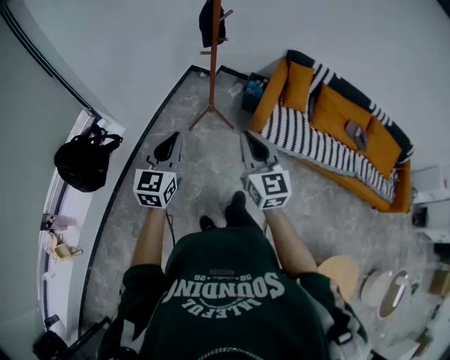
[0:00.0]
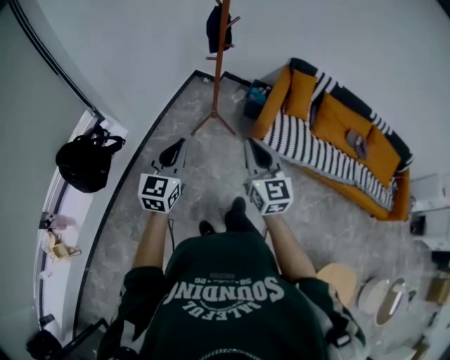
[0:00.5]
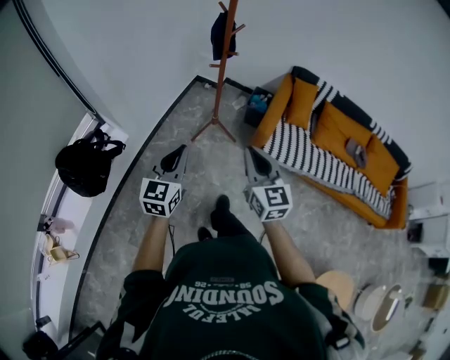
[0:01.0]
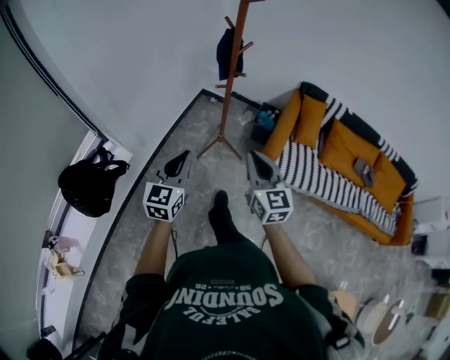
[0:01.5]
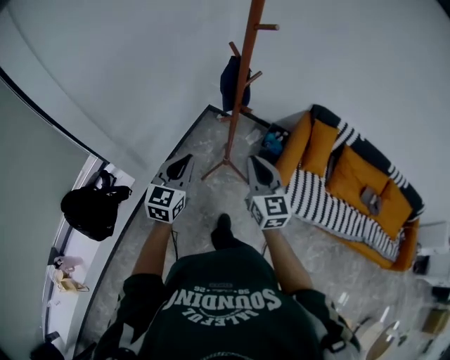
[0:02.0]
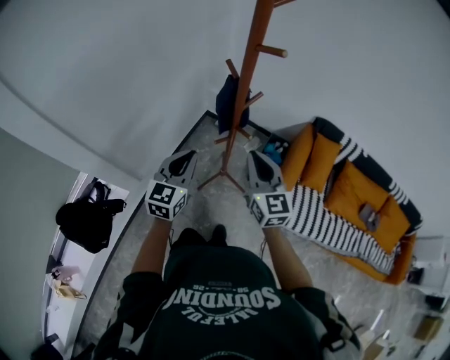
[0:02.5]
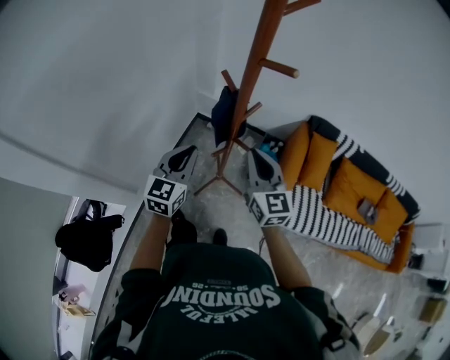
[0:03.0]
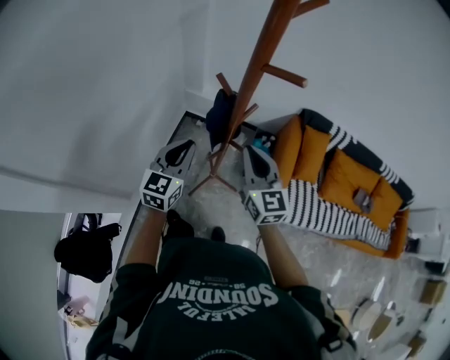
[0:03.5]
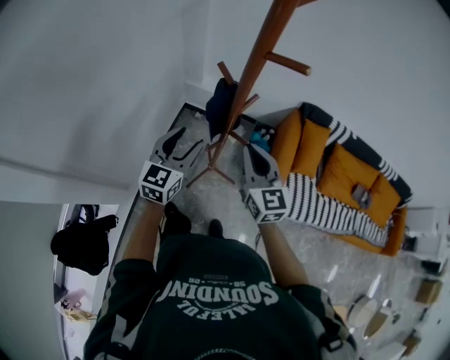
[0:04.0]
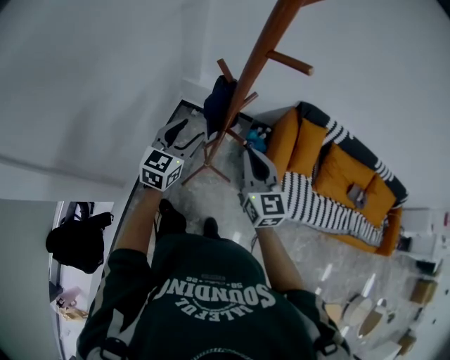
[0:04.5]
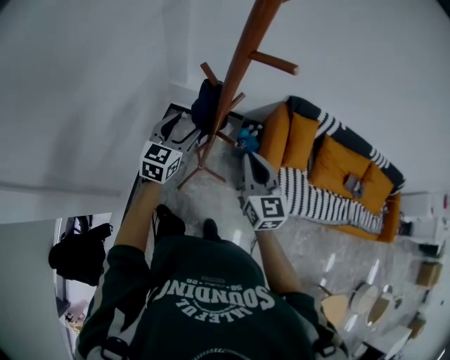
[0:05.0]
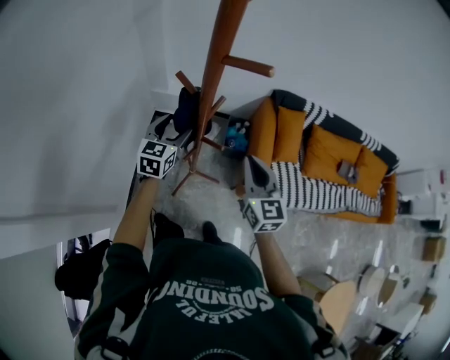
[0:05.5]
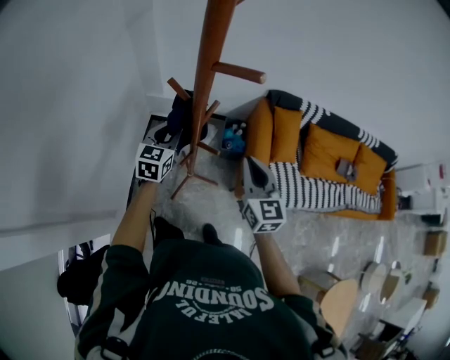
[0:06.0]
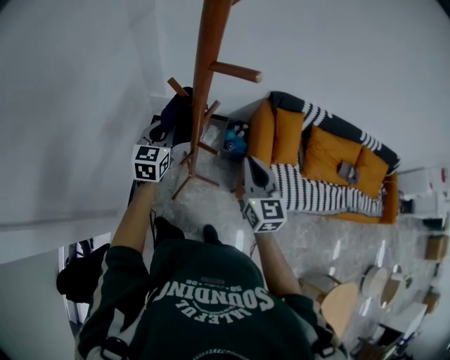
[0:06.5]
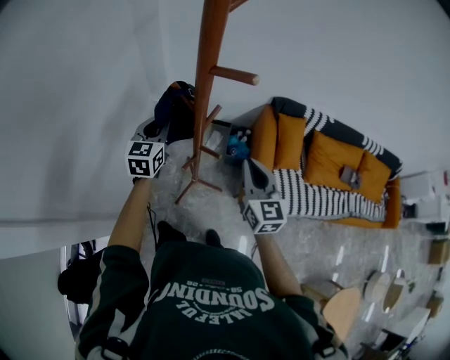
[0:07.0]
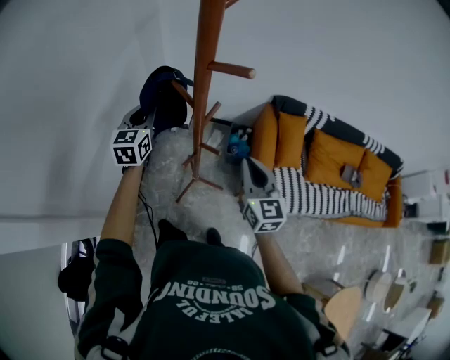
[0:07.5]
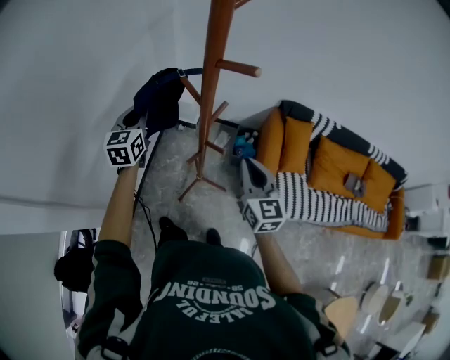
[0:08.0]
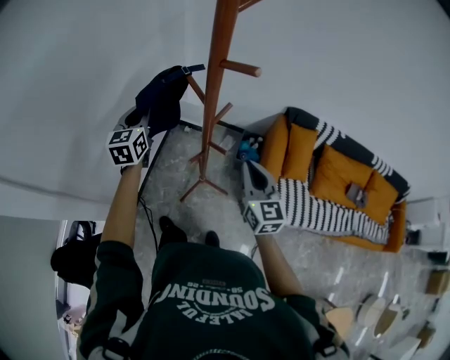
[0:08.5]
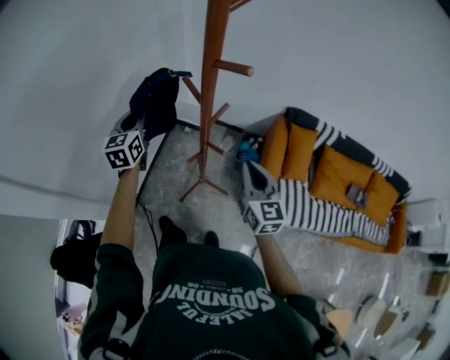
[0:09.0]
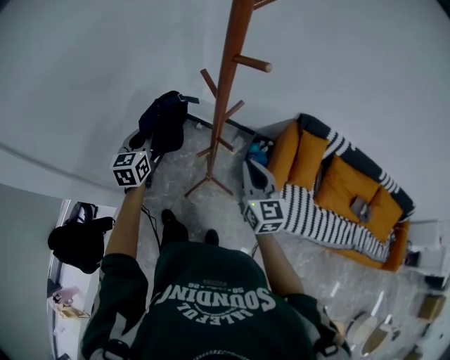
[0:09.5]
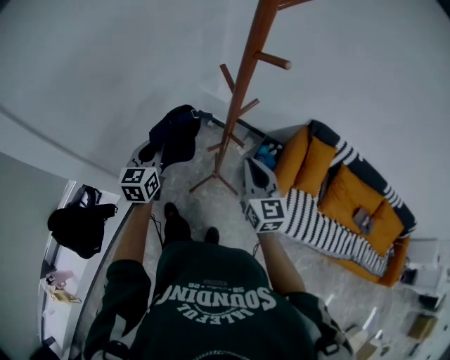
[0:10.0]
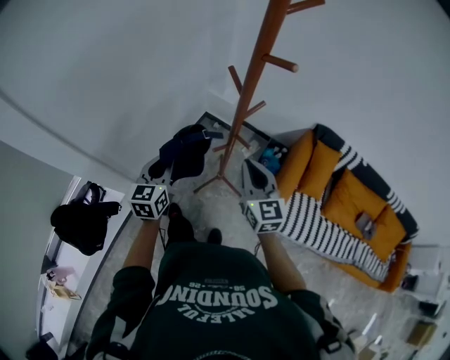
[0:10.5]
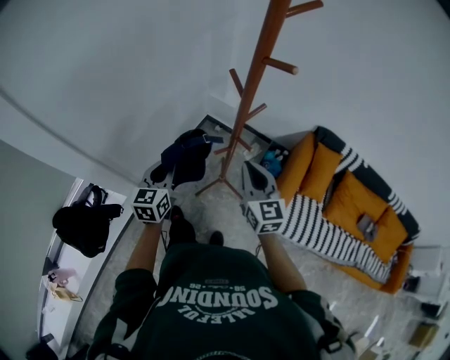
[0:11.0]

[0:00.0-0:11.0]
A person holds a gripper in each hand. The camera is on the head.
0:00.0 to 0:02.0: Both grippers move forward, some 30 cm.
0:02.0 to 0:03.5: Both grippers move forward, roughly 25 cm.
0:03.5 to 0:05.5: The right gripper travels to the right by approximately 10 cm; the left gripper goes approximately 10 cm forward and downward, and opens.
0:05.5 to 0:07.5: The left gripper travels to the left and upward by roughly 10 cm, and closes up.
0:07.5 to 0:09.0: The left gripper goes some 5 cm to the left.
0:09.0 to 0:11.0: The left gripper travels backward by approximately 20 cm. Meanwhile the right gripper goes roughly 10 cm to the left.

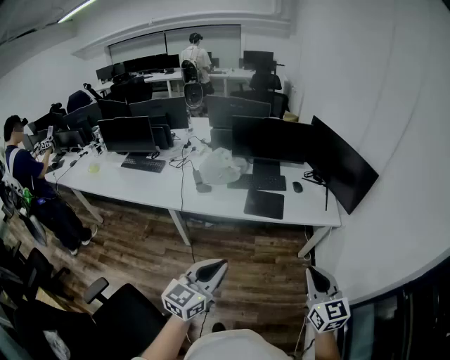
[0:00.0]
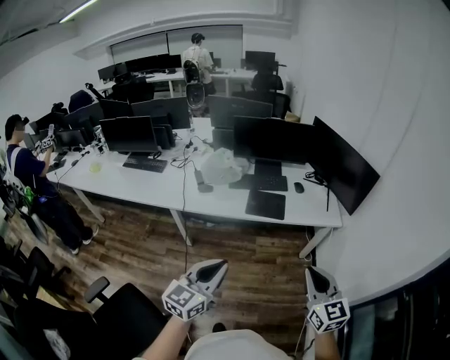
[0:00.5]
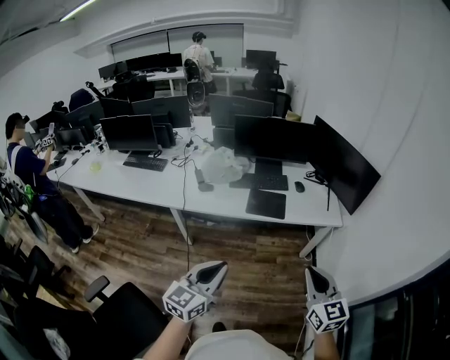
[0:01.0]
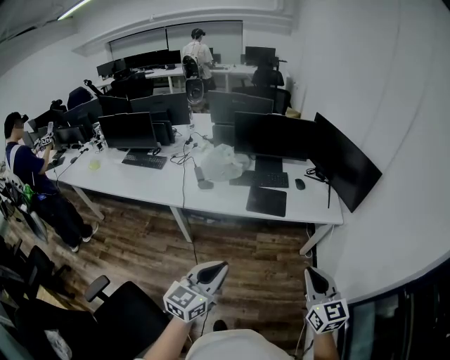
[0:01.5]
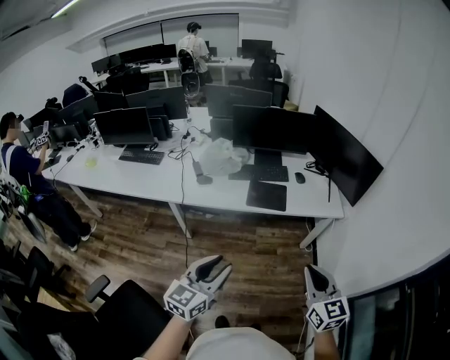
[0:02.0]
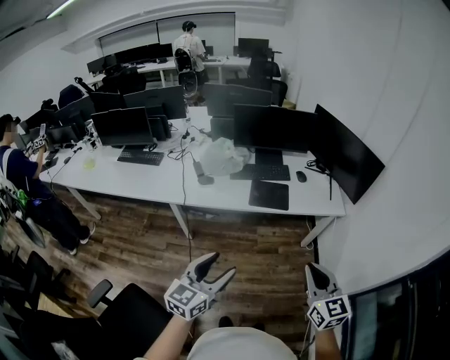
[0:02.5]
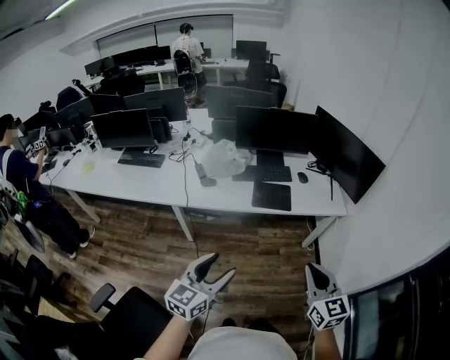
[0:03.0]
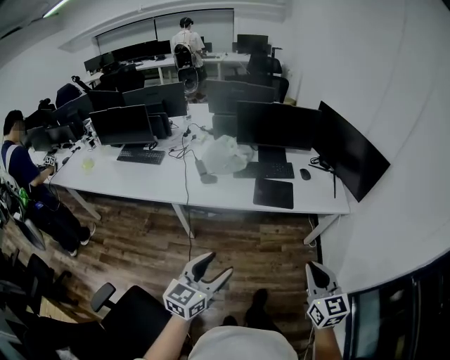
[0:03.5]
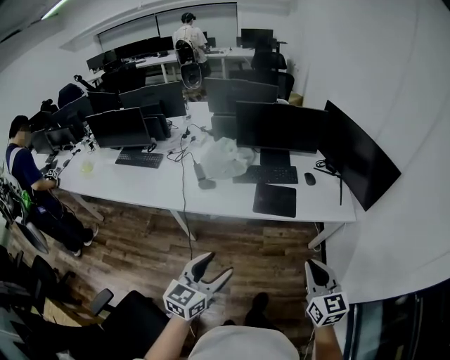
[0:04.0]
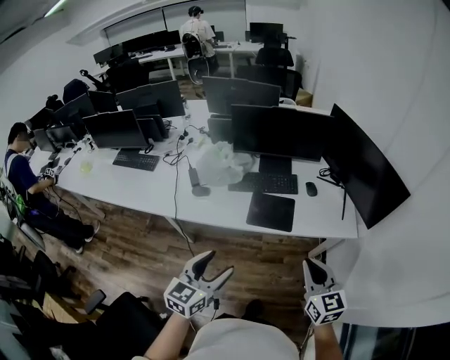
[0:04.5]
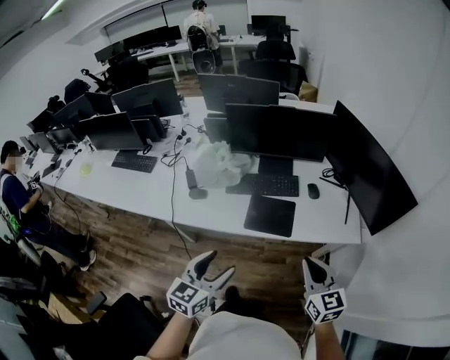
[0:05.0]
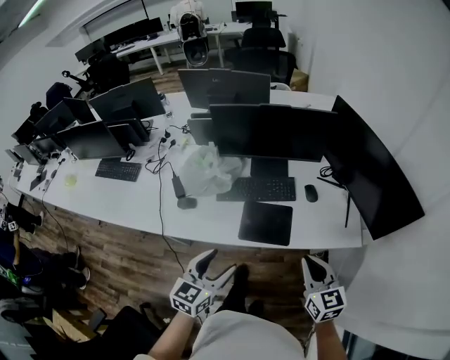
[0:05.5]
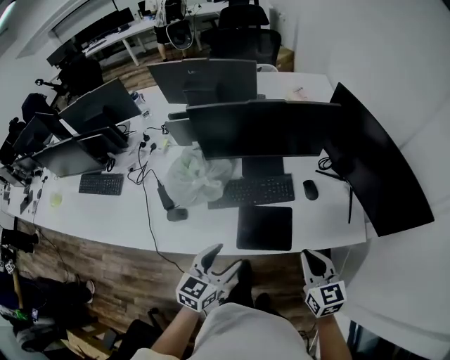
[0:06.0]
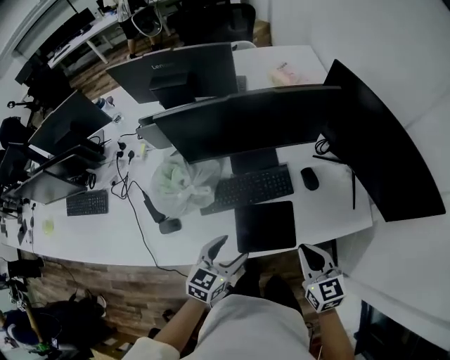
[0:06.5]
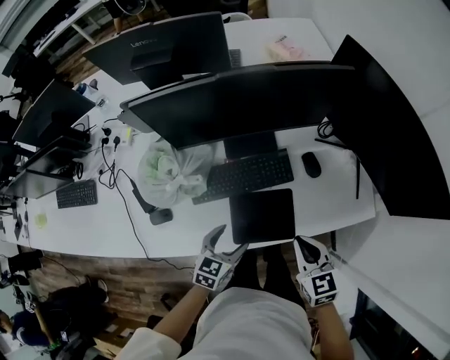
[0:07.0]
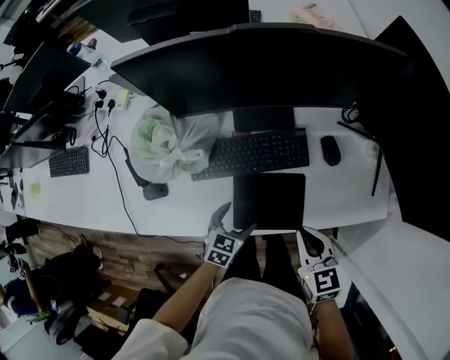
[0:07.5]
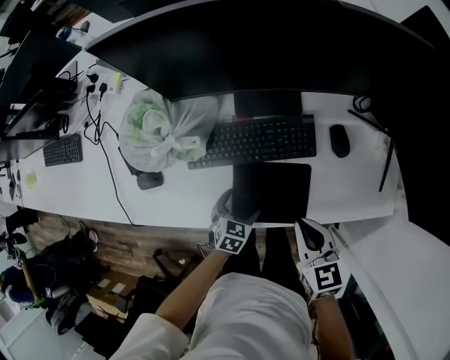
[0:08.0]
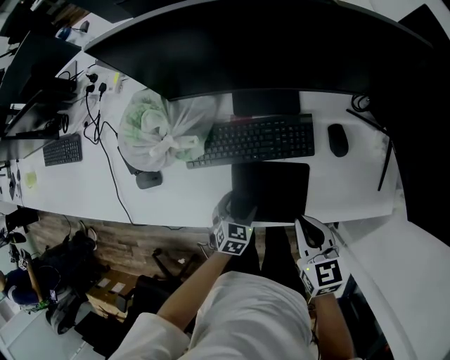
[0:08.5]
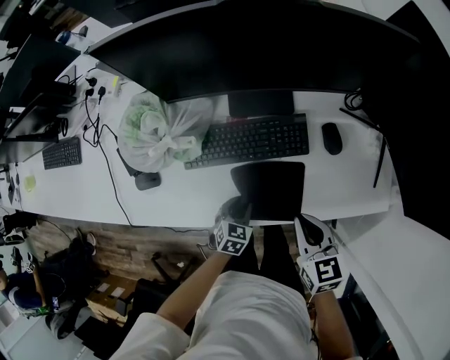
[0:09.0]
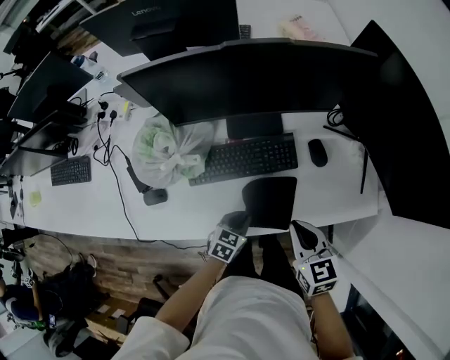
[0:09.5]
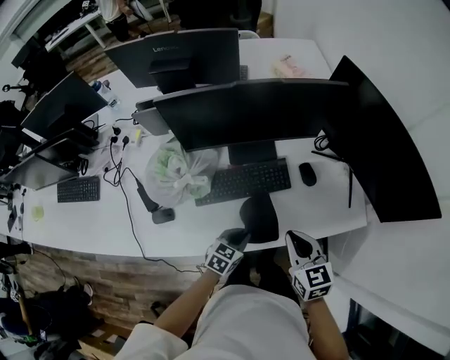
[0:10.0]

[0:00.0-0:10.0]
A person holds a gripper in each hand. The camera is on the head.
0:00.0 to 0:02.0: The grippers stay close to where they were, moving slightly.
0:02.0 to 0:04.0: The left gripper travels forward and to the left by some 10 cm; the right gripper goes roughly 10 cm forward.
0:04.0 to 0:06.0: Both grippers move forward, some 40 cm.
0:06.0 to 0:08.0: The left gripper goes roughly 35 cm downward, and angles its fingers downward, by some 30 degrees, while the right gripper shifts approximately 20 cm downward and forward.
0:08.0 to 0:10.0: The grippers both shift upward by about 10 cm. The left gripper changes its angle by some 20 degrees, and closes up.

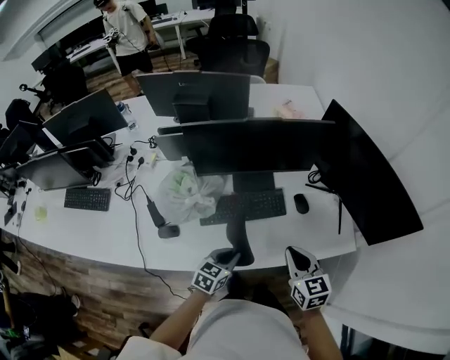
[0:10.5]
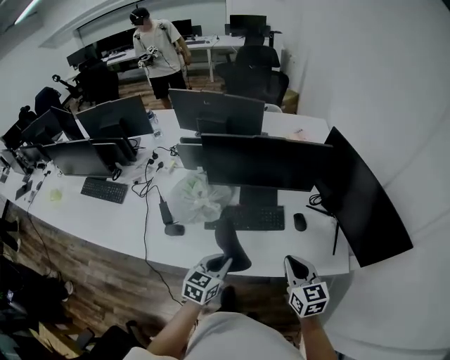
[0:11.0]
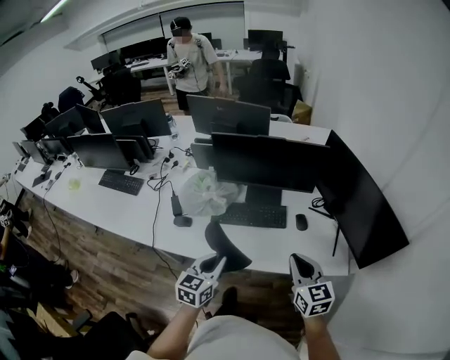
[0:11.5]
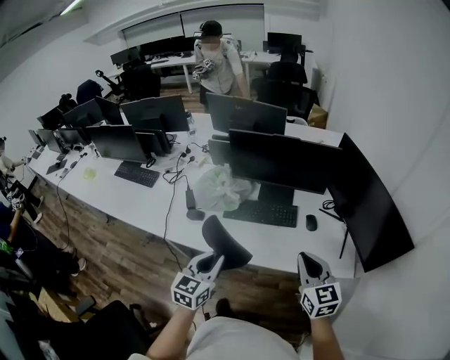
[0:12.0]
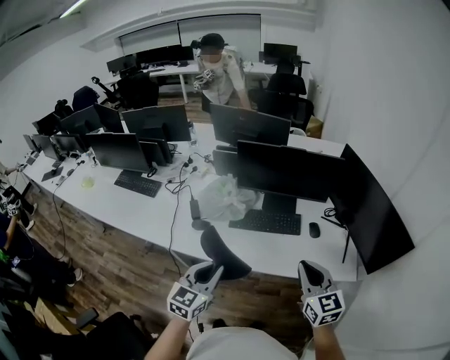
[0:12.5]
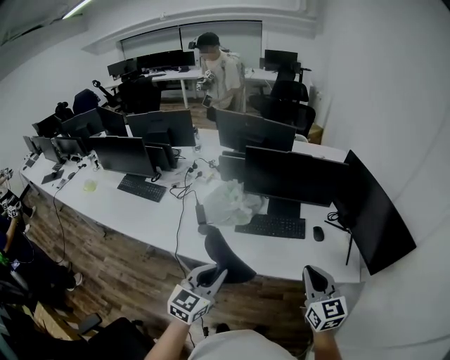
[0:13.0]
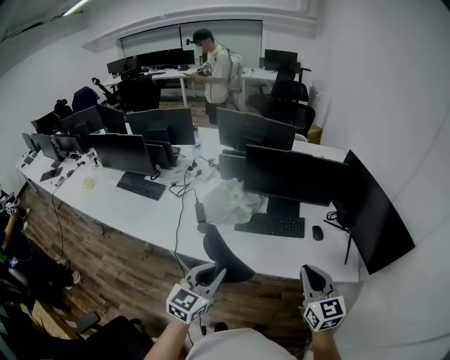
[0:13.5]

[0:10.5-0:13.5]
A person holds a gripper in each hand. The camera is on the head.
0:10.5 to 0:12.0: The left gripper travels upward and backward by some 25 cm, and changes its angle by some 40 degrees, while the right gripper moves backward, upward and to the right, roughly 15 cm, and changes its angle by approximately 20 degrees.
0:12.0 to 0:13.5: The left gripper moves to the left and upward, roughly 10 cm. Meanwhile the right gripper goes approximately 10 cm to the left and backward.

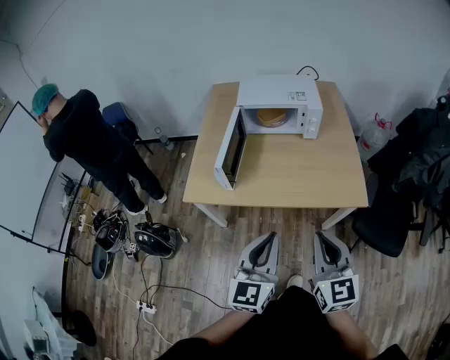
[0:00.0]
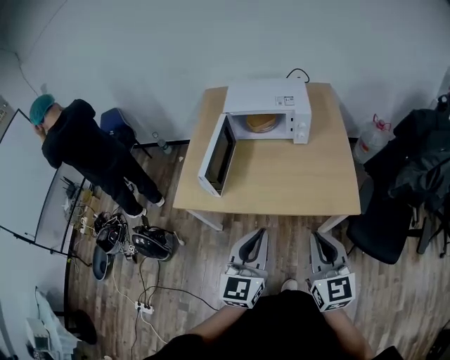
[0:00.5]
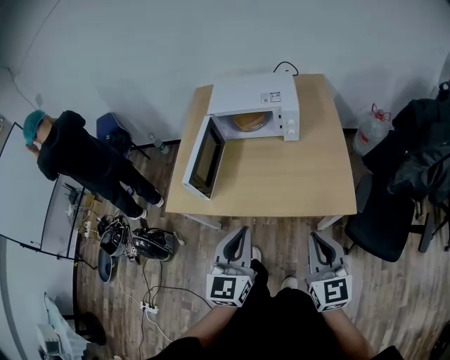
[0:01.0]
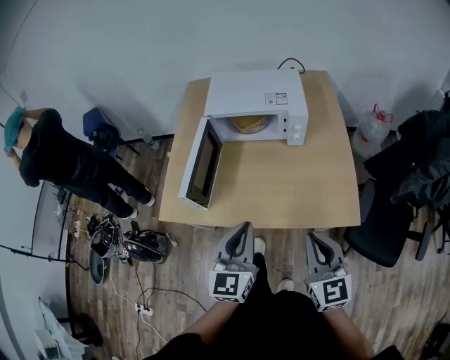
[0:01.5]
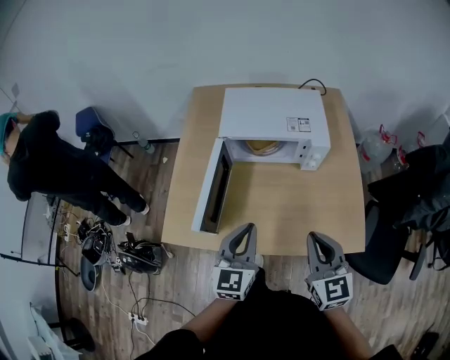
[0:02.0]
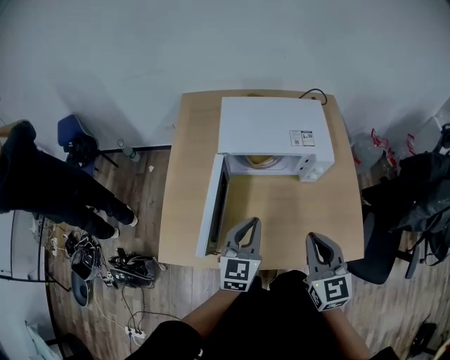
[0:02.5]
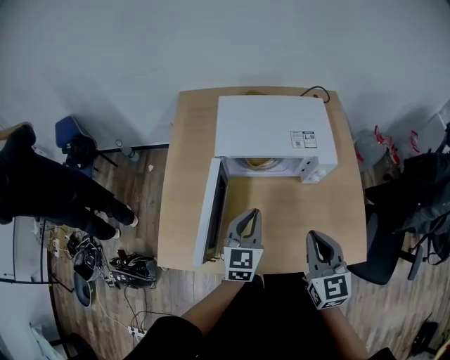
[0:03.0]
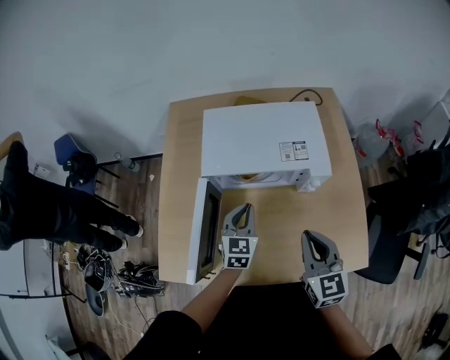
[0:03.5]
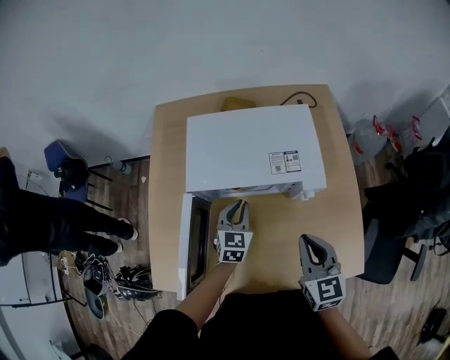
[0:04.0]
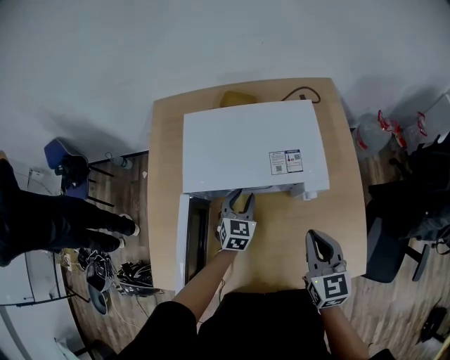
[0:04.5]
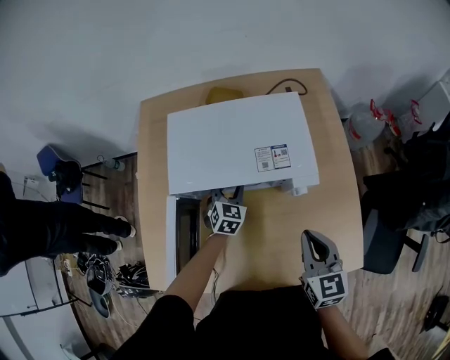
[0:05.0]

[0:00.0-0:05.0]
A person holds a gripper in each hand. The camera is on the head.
0:00.0 to 0:02.5: Both grippers move forward, about 35 cm.
0:02.5 to 0:05.0: The right gripper goes approximately 20 cm forward, to the right and downward. The left gripper shifts roughly 35 cm forward and downward, turns by about 30 degrees, and opens up.
